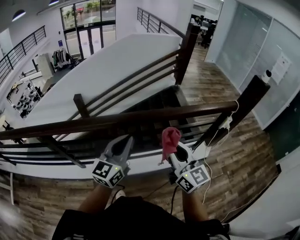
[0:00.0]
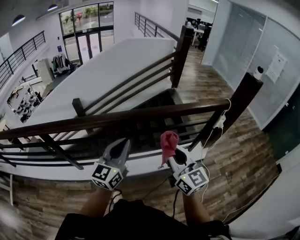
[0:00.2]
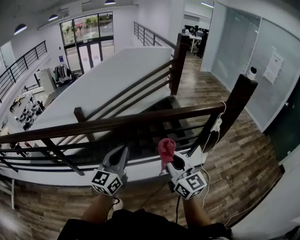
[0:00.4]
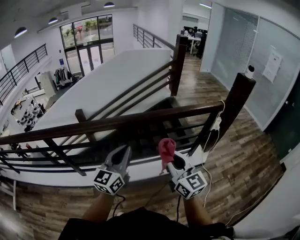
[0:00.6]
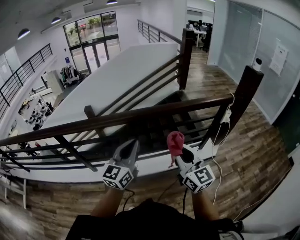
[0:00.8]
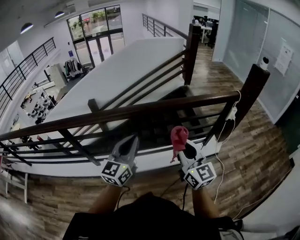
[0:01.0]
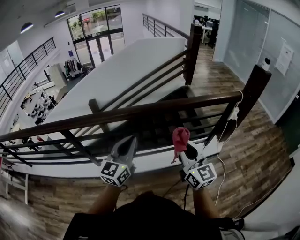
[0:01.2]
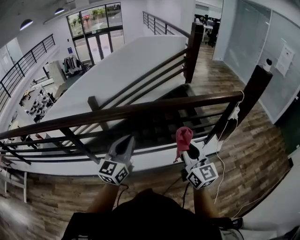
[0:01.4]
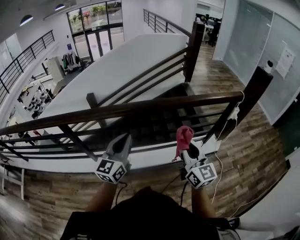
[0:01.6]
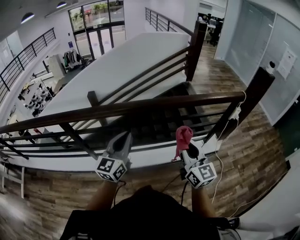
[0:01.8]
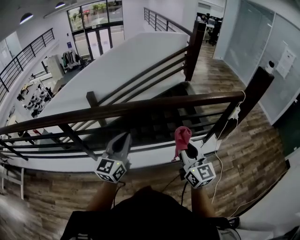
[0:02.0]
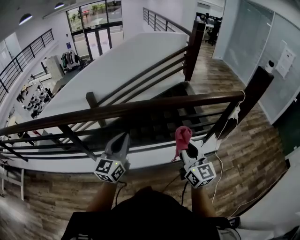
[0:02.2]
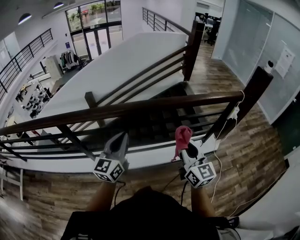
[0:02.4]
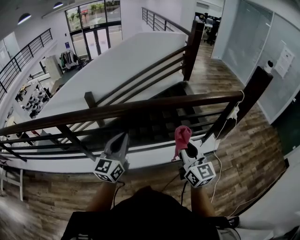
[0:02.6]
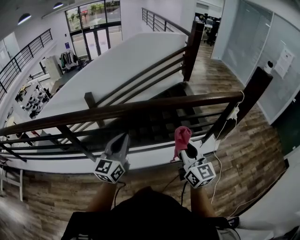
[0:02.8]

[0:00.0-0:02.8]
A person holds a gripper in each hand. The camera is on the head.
0:00.0 to 0:01.4: Both grippers travel together backward, about 5 cm.
0:01.4 to 0:02.8: The grippers move only a little.

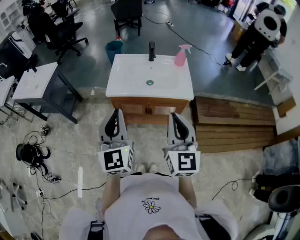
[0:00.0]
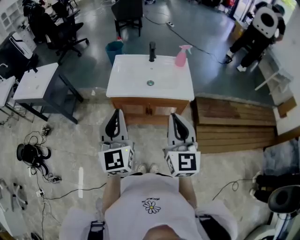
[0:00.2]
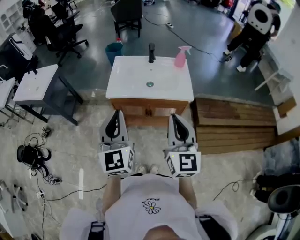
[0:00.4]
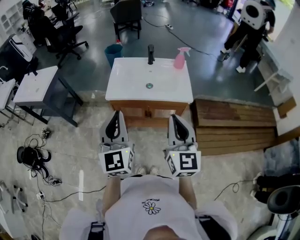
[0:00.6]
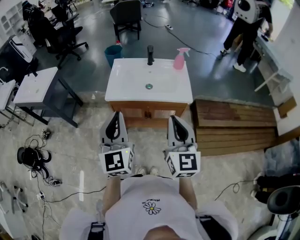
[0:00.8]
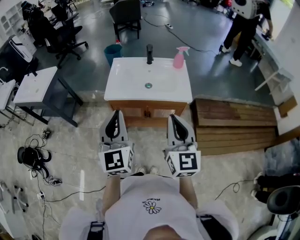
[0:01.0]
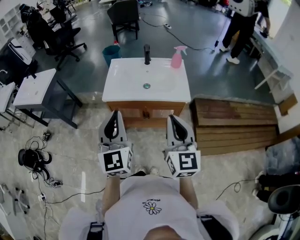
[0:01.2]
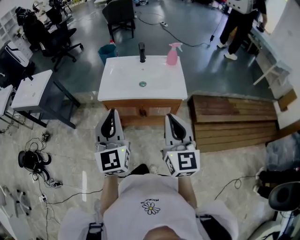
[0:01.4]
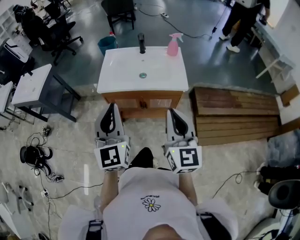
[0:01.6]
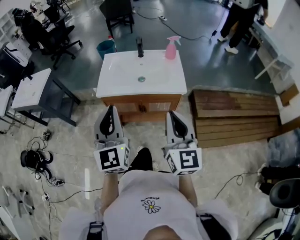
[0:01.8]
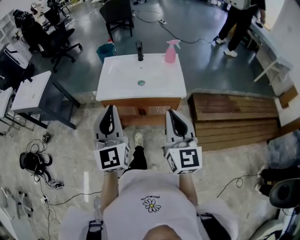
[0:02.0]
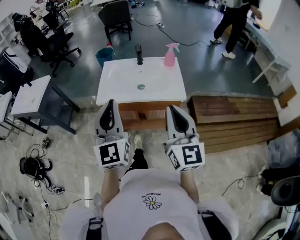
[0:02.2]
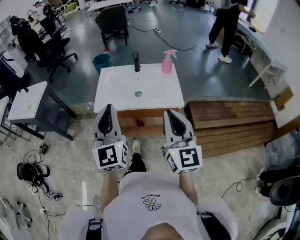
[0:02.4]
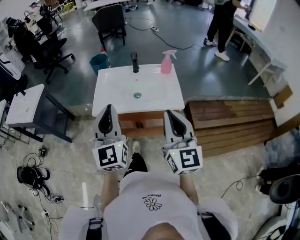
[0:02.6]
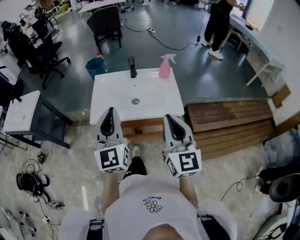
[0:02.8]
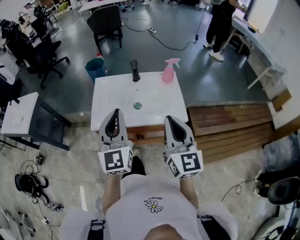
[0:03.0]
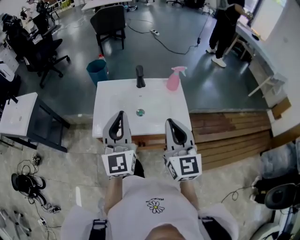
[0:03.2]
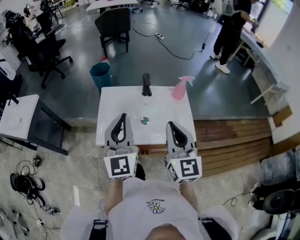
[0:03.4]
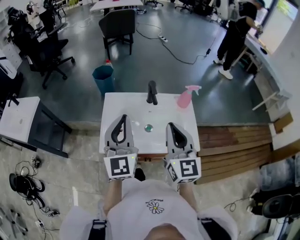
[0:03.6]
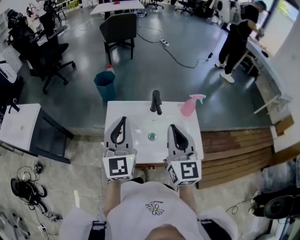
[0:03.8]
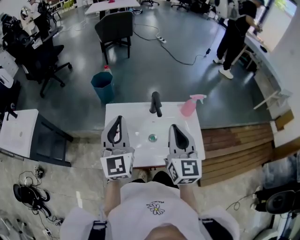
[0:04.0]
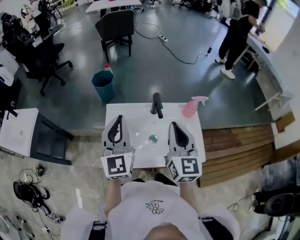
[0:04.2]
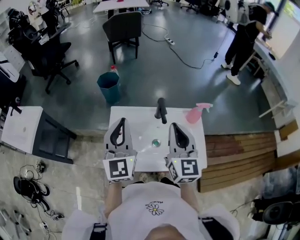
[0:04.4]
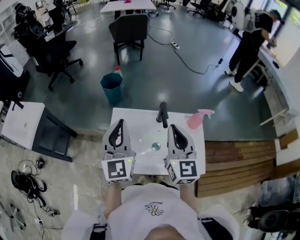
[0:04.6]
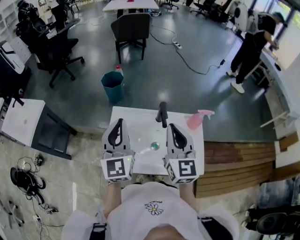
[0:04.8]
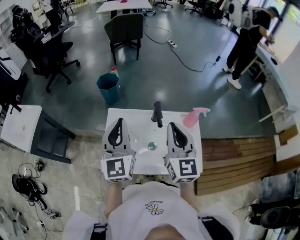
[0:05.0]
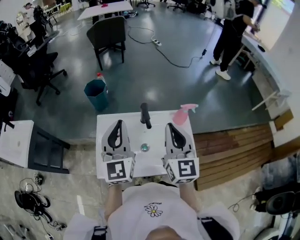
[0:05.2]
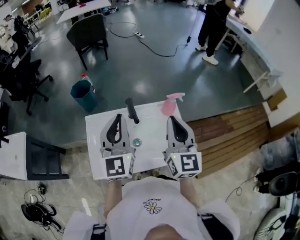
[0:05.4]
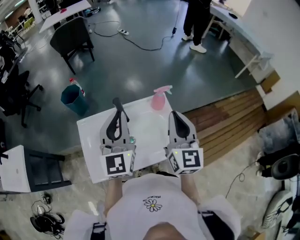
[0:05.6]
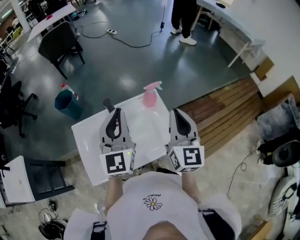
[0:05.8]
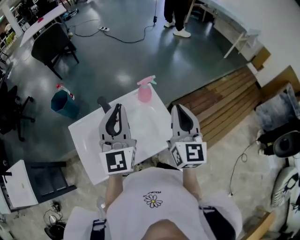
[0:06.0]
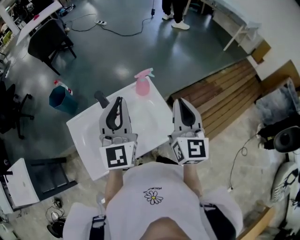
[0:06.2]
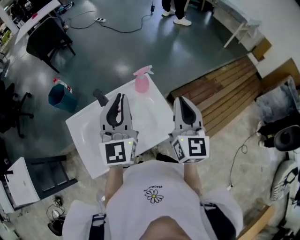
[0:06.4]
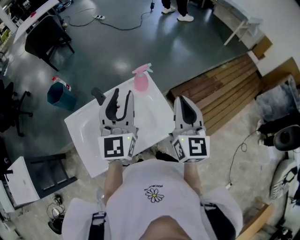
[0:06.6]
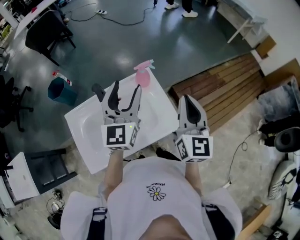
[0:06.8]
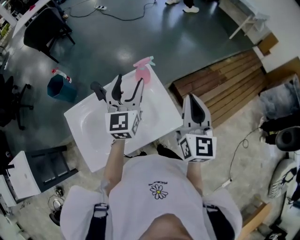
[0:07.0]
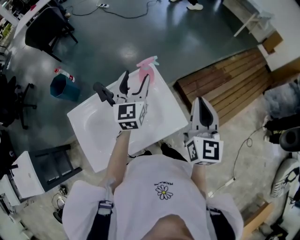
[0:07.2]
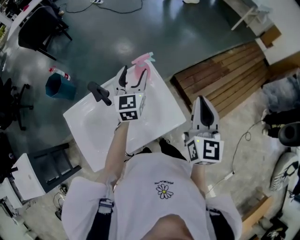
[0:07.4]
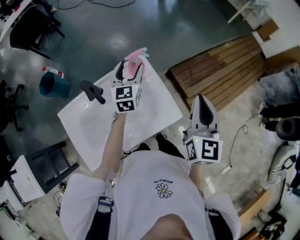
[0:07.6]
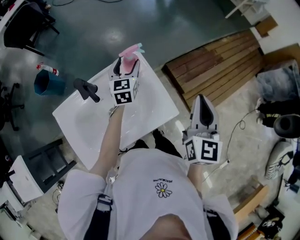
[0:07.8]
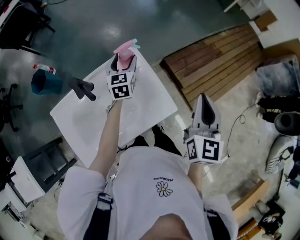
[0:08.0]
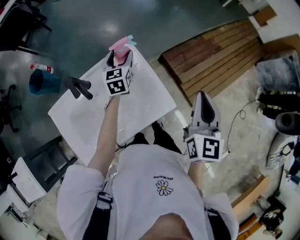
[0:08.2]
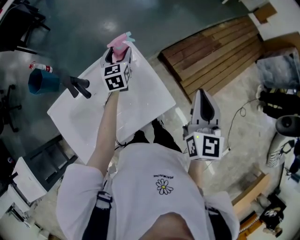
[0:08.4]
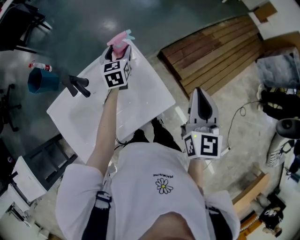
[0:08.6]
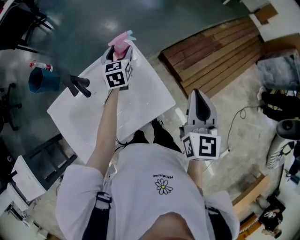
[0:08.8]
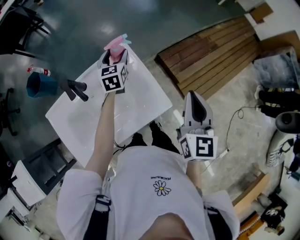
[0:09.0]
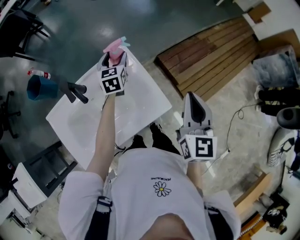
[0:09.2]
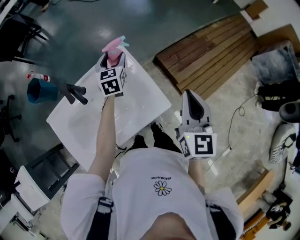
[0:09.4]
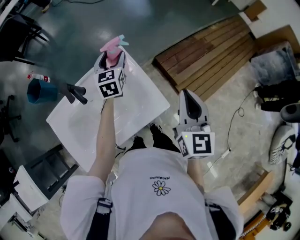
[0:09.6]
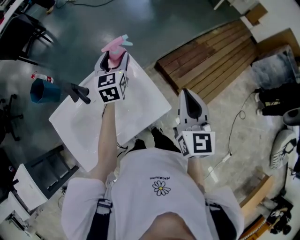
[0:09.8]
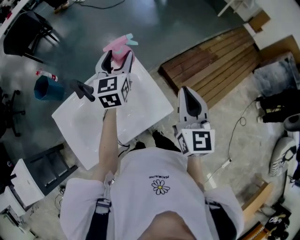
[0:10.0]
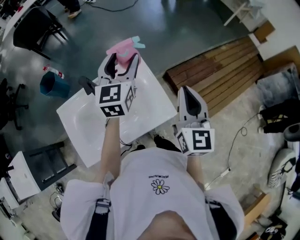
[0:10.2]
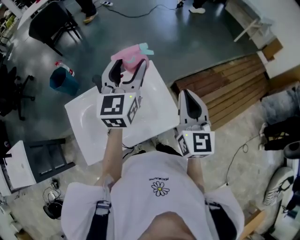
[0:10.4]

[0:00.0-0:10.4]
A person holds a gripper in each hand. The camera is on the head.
0:00.0 to 0:01.4: The grippers make only small movements.
0:01.4 to 0:03.0: Both grippers travel together forward, some 15 cm.
0:03.0 to 0:04.4: The two grippers go approximately 25 cm forward.
0:04.4 to 0:06.0: The left gripper changes place by roughly 25 cm, and rotates some 30 degrees; the right gripper changes place by some 25 cm, and changes its angle by roughly 30 degrees.
0:06.0 to 0:07.4: The right gripper is displaced to the right by roughly 10 cm, while the left gripper goes roughly 25 cm downward and forward, swivels roughly 20 degrees, and opens up.
0:07.4 to 0:09.0: The right gripper shifts by about 5 cm. The left gripper goes about 15 cm downward and forward.
0:09.0 to 0:10.4: The left gripper moves upward and backward, roughly 30 cm, and swivels some 30 degrees. The right gripper shifts roughly 10 cm to the left and upward.

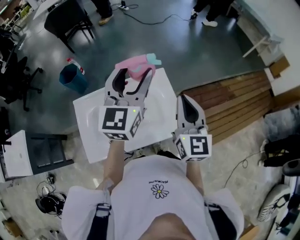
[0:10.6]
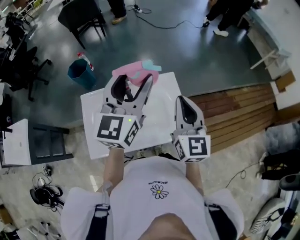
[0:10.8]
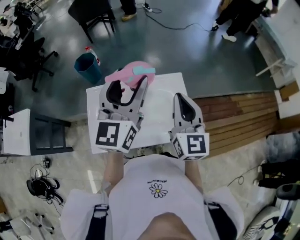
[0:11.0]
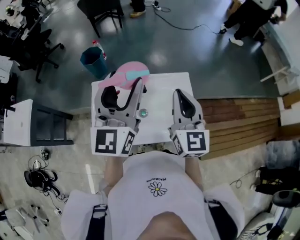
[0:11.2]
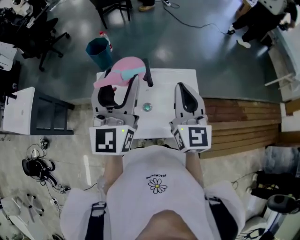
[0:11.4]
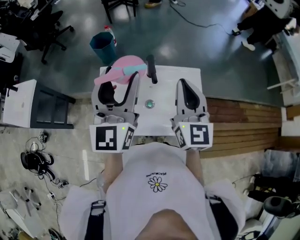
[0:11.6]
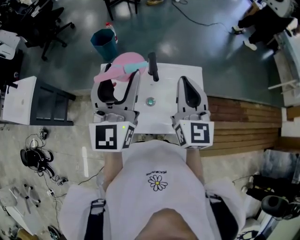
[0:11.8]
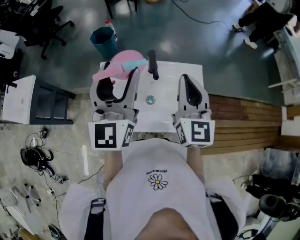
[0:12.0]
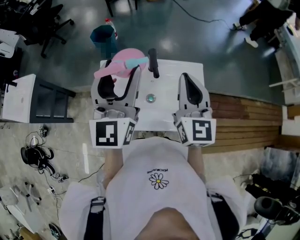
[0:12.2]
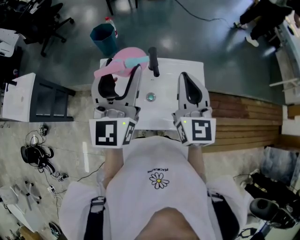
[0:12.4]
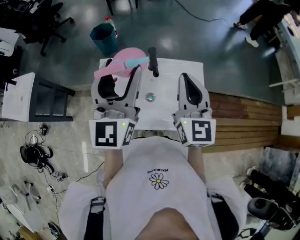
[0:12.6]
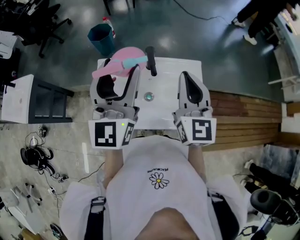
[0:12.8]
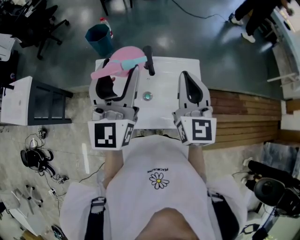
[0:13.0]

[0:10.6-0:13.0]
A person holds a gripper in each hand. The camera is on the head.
0:10.6 to 0:11.8: Both grippers move to the left, about 20 cm. The left gripper changes its angle by about 30 degrees.
0:11.8 to 0:13.0: There are only small adjustments of the grippers.

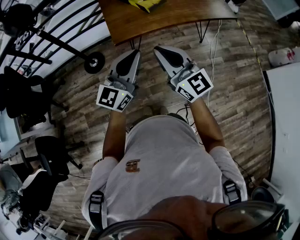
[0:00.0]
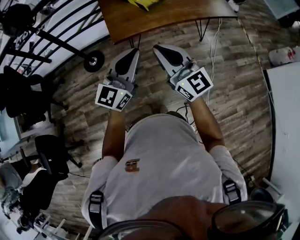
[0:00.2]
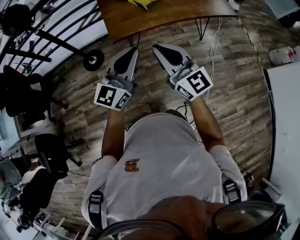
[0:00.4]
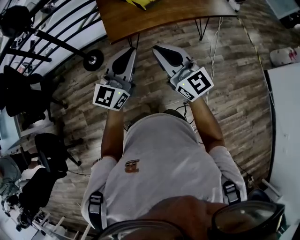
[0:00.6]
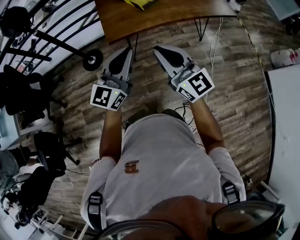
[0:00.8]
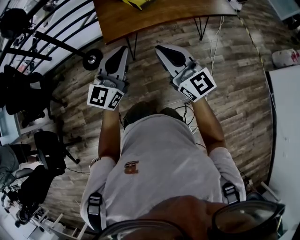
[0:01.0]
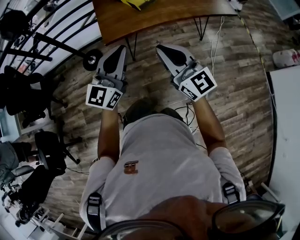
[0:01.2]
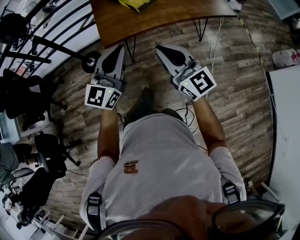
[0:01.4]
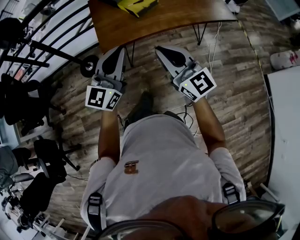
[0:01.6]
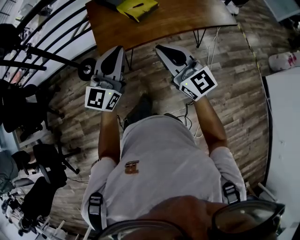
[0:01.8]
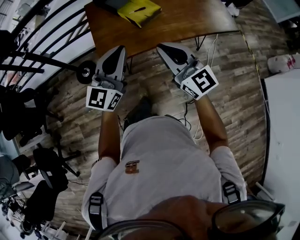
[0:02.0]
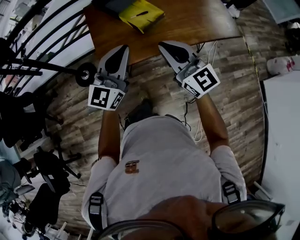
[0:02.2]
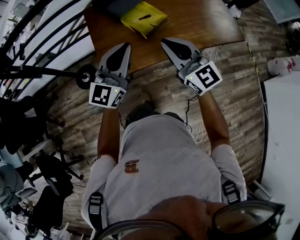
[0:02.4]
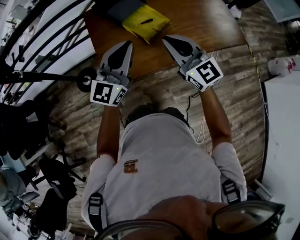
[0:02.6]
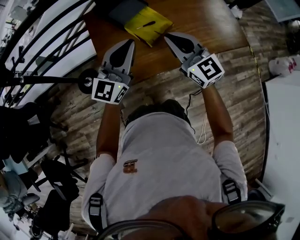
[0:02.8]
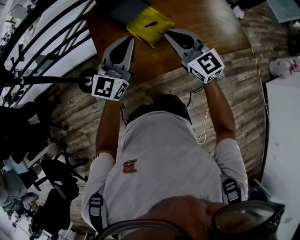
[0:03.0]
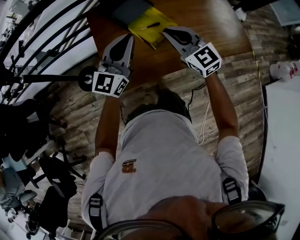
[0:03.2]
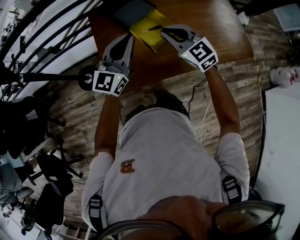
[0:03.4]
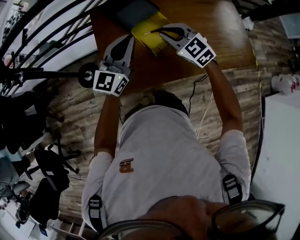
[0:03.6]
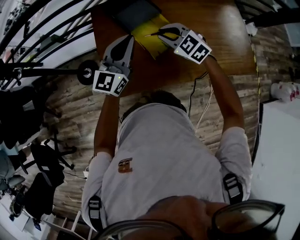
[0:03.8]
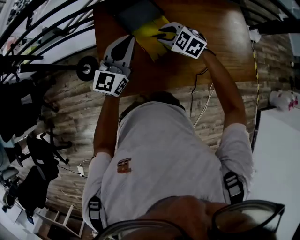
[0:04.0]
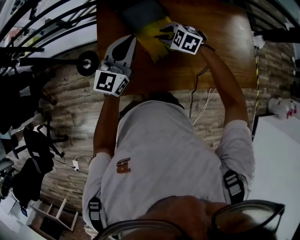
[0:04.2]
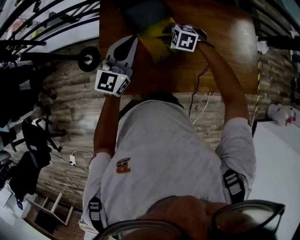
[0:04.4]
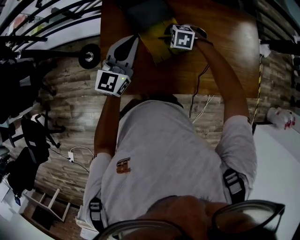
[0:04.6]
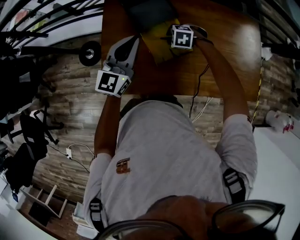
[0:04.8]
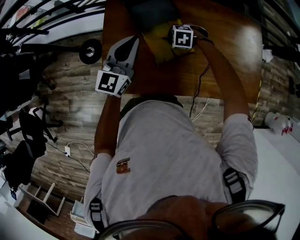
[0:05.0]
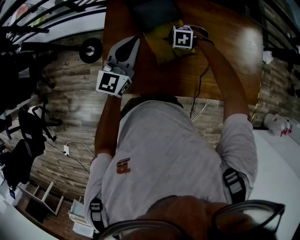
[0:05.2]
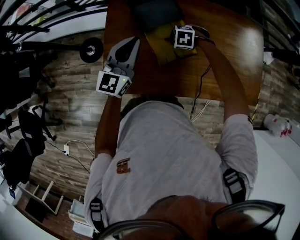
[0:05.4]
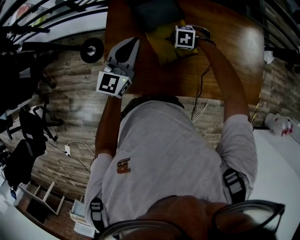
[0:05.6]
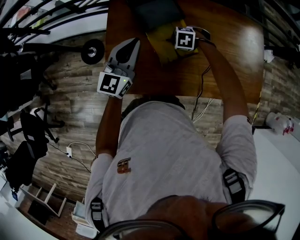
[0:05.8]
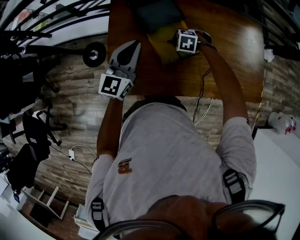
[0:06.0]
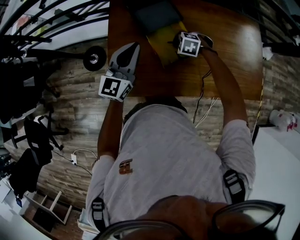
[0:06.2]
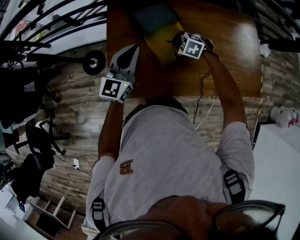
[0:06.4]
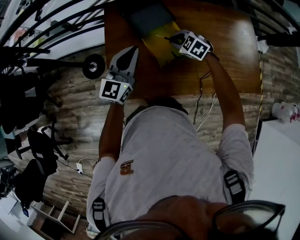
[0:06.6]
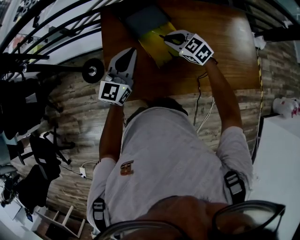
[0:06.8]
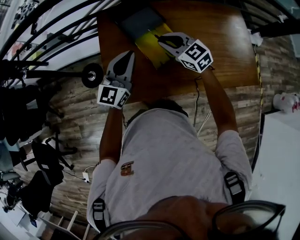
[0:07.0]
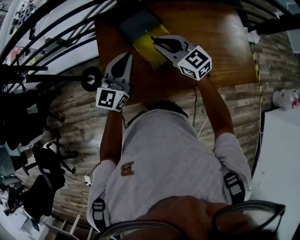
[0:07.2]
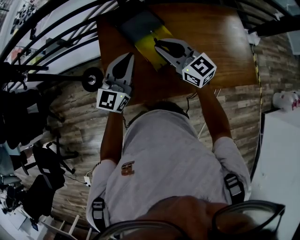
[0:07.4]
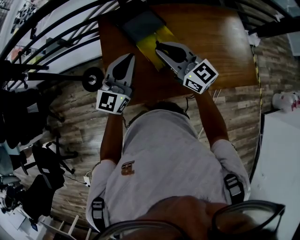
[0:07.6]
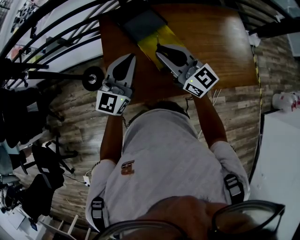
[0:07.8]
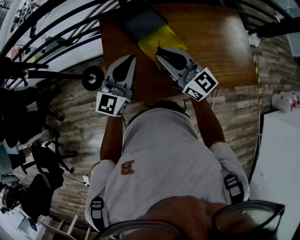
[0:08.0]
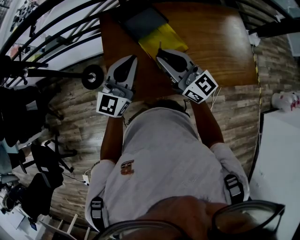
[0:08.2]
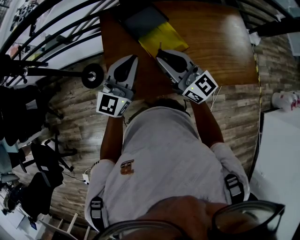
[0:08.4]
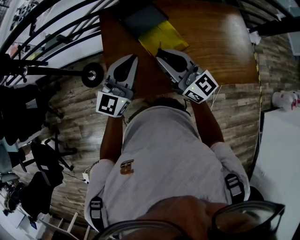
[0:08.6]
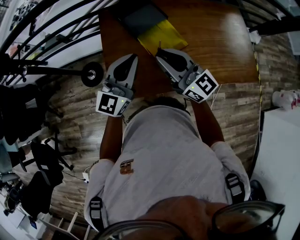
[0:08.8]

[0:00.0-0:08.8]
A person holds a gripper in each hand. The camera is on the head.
0:00.0 to 0:01.4: The left gripper goes roughly 10 cm forward and to the right; the right gripper shifts about 10 cm to the right.
0:01.4 to 0:03.0: The two grippers travel together, forward, about 50 cm.
0:03.0 to 0:04.4: The left gripper changes place by about 20 cm, and changes its angle by about 20 degrees, while the right gripper moves downward, about 25 cm, tilts its fingers approximately 60 degrees downward, and opens up.
0:04.4 to 0:05.8: The right gripper travels downward by some 5 cm.
0:05.8 to 0:07.4: The left gripper moves roughly 10 cm. Meanwhile the right gripper travels upward by about 30 cm, and tips its fingers upward by approximately 70 degrees.
0:07.4 to 0:08.8: The right gripper travels backward by about 5 cm.
